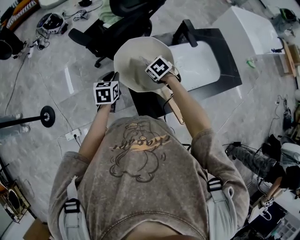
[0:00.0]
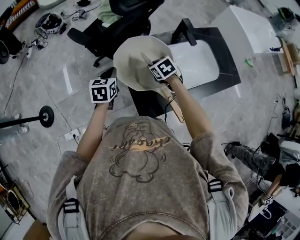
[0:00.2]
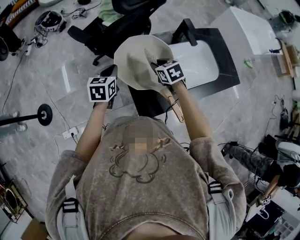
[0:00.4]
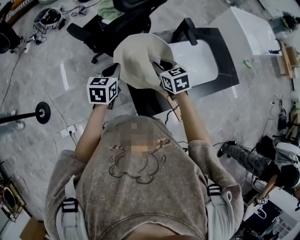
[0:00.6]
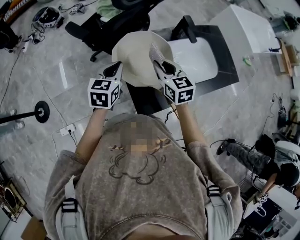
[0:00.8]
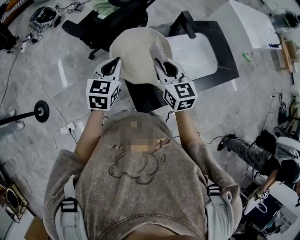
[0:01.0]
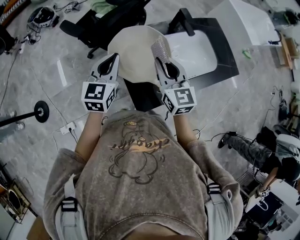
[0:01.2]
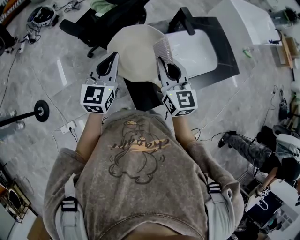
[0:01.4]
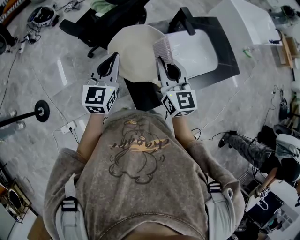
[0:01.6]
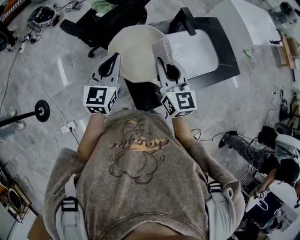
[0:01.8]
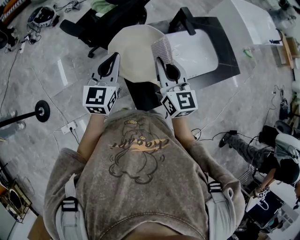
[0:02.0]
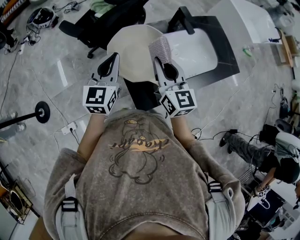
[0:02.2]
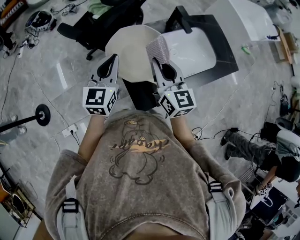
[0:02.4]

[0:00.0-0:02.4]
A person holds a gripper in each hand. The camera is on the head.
0:00.0 to 0:01.2: Both grippers move upward, some 20 cm. The left gripper rotates approximately 30 degrees. Meanwhile the right gripper tilts its fingers about 60 degrees upward.
0:01.2 to 0:02.4: The grippers make only small movements.

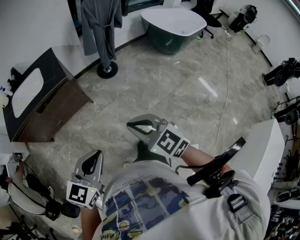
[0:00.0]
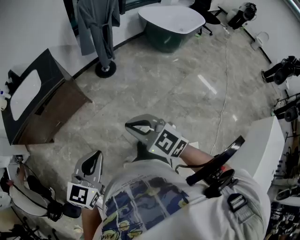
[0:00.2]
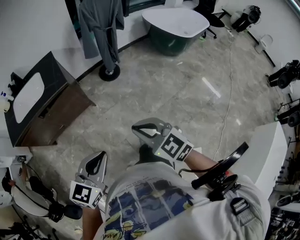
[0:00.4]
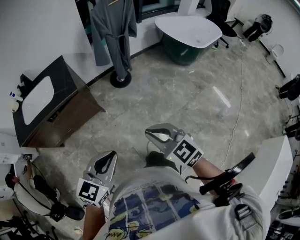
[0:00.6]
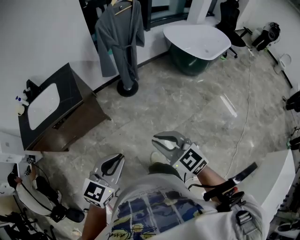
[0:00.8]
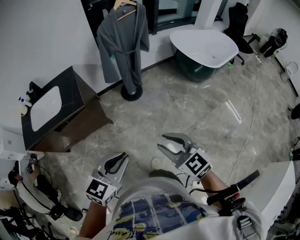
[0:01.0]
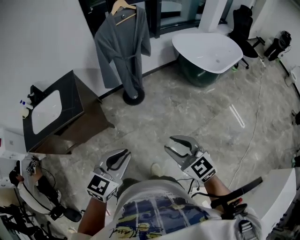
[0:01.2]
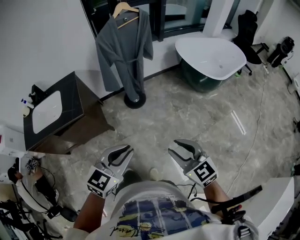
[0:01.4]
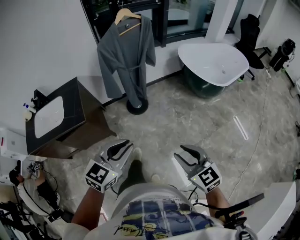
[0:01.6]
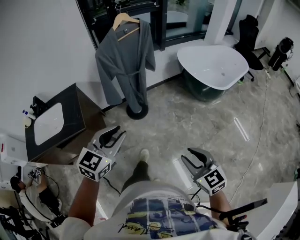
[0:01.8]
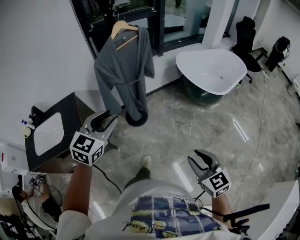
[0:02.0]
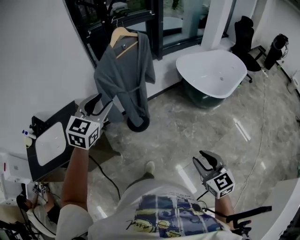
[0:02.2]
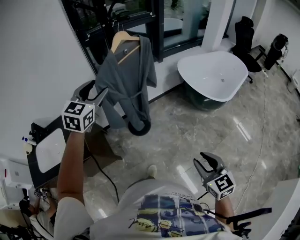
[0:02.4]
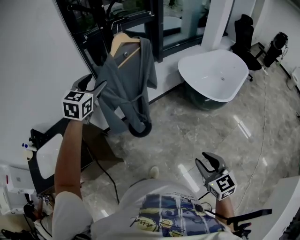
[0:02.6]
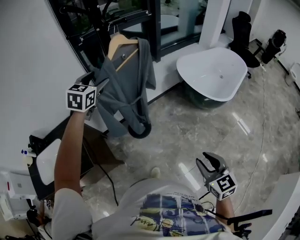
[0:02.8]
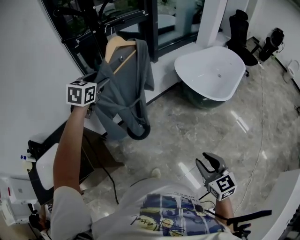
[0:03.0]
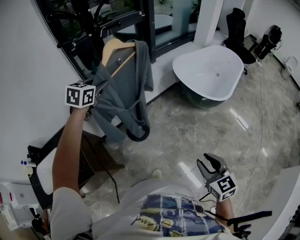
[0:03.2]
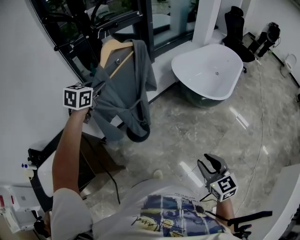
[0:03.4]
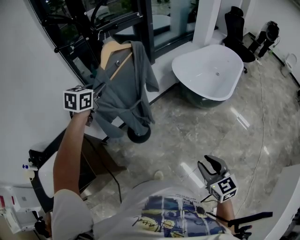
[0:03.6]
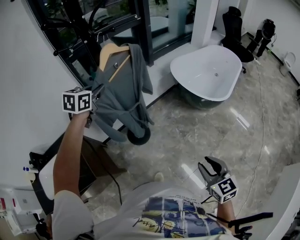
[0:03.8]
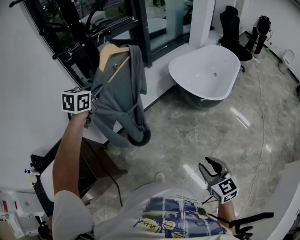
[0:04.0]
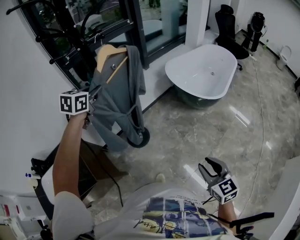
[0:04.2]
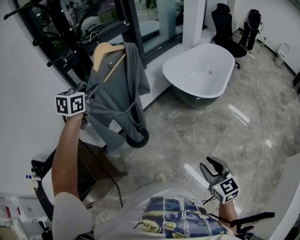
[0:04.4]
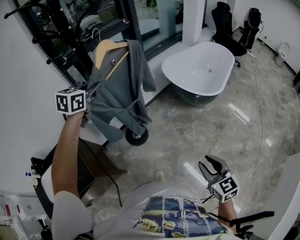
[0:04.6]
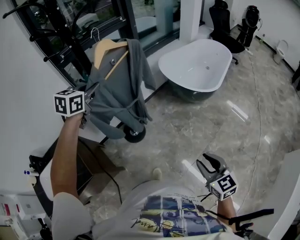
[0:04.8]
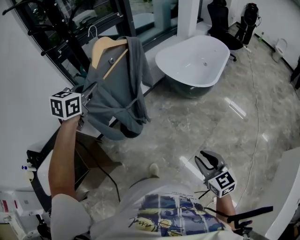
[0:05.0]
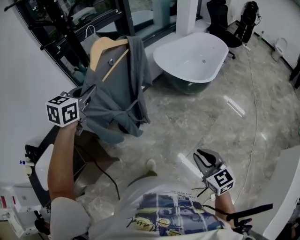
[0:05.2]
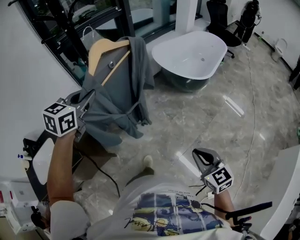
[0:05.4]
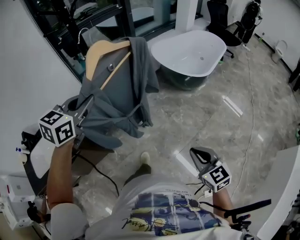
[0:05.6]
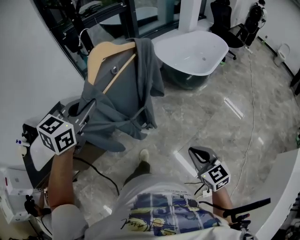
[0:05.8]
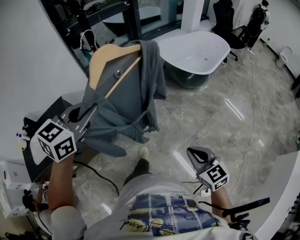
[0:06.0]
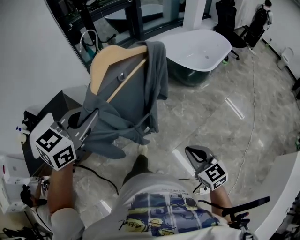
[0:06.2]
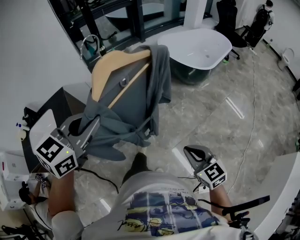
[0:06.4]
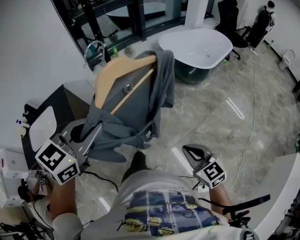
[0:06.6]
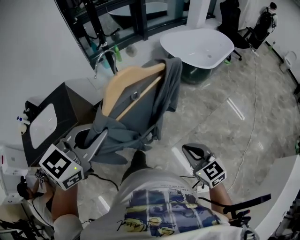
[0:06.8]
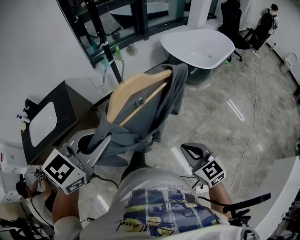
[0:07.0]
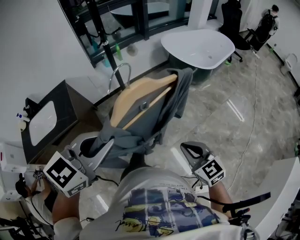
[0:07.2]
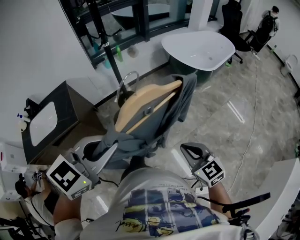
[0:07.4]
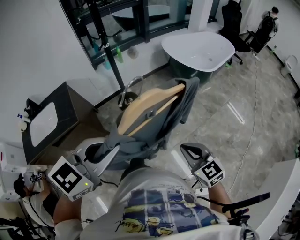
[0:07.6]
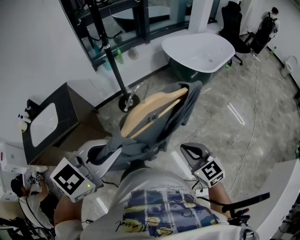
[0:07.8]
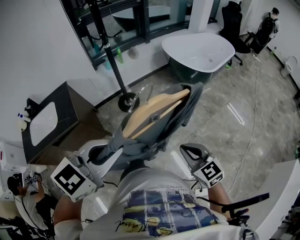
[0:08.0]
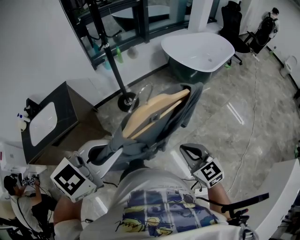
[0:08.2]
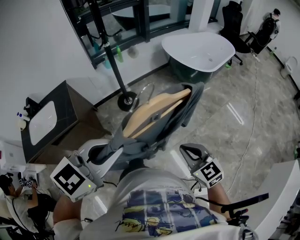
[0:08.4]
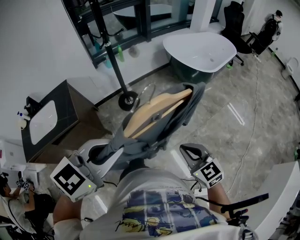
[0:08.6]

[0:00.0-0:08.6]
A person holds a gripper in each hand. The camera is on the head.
0:00.0 to 0:01.4: The left gripper shifts some 35 cm forward and to the right. The right gripper heads to the right and forward, covering approximately 30 cm, and opens.
0:01.4 to 0:02.8: The right gripper travels forward by some 20 cm, and rotates approximately 30 degrees. The left gripper shifts some 60 cm forward, and opens its fingers.
0:02.8 to 0:04.4: The left gripper closes its fingers.
0:04.4 to 0:05.8: The right gripper shifts approximately 15 cm backward and to the right, and closes its fingers. The left gripper travels backward and to the right by roughly 35 cm.
0:05.8 to 0:07.2: The right gripper goes roughly 5 cm backward, while the left gripper is displaced backward by about 20 cm.
0:07.2 to 0:08.6: The grippers make only small movements.

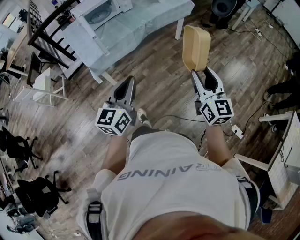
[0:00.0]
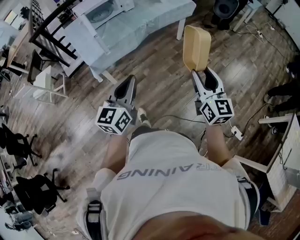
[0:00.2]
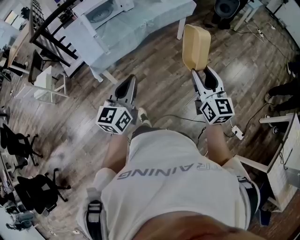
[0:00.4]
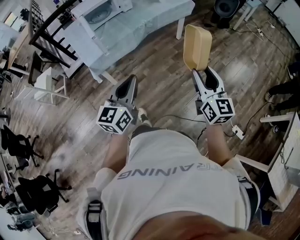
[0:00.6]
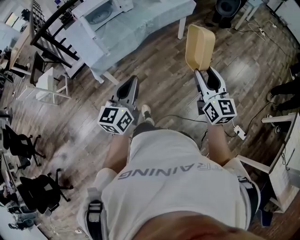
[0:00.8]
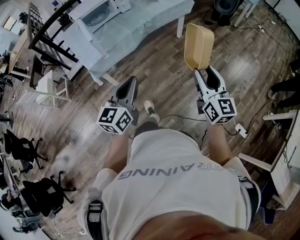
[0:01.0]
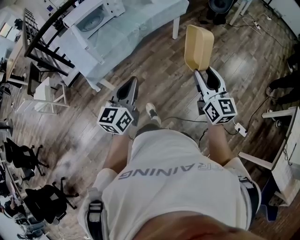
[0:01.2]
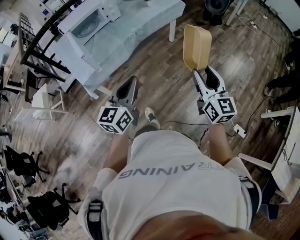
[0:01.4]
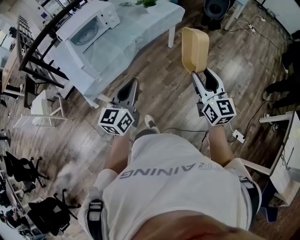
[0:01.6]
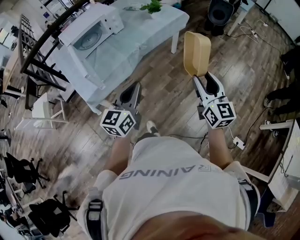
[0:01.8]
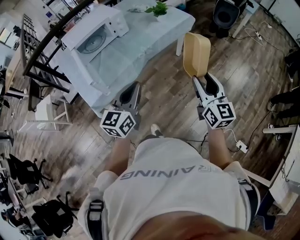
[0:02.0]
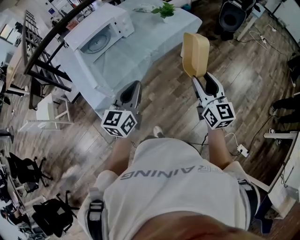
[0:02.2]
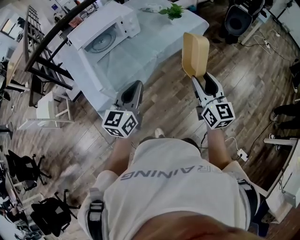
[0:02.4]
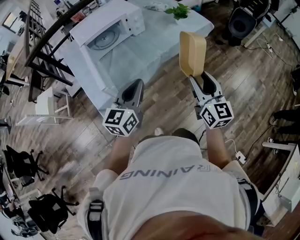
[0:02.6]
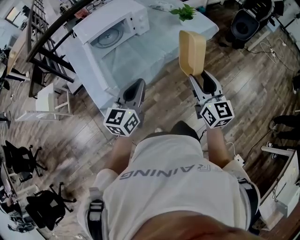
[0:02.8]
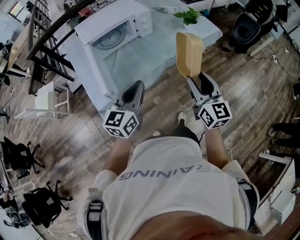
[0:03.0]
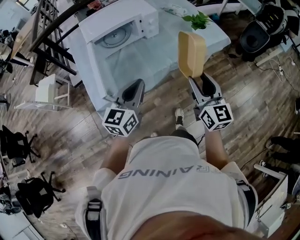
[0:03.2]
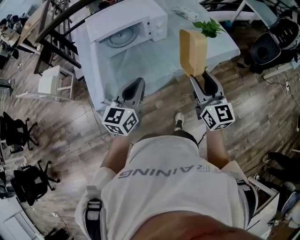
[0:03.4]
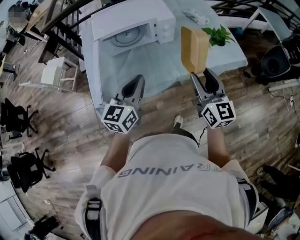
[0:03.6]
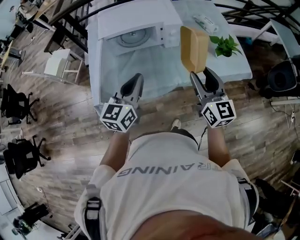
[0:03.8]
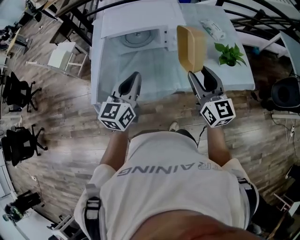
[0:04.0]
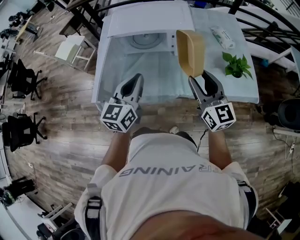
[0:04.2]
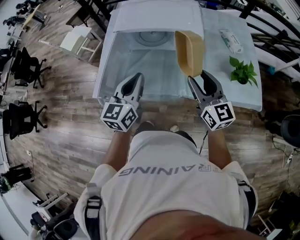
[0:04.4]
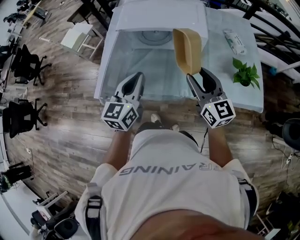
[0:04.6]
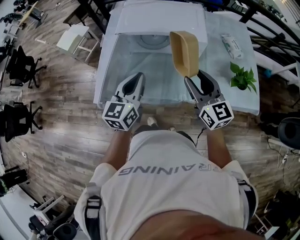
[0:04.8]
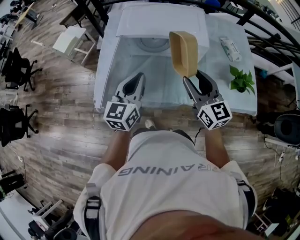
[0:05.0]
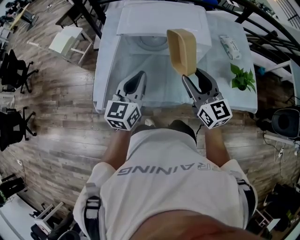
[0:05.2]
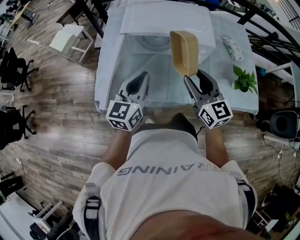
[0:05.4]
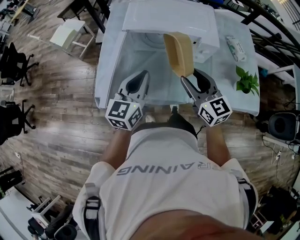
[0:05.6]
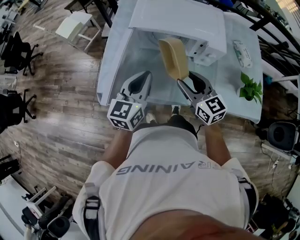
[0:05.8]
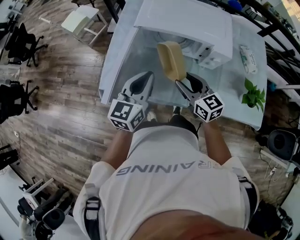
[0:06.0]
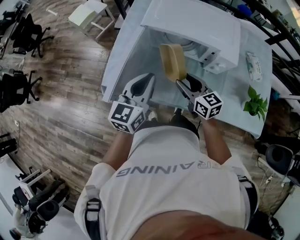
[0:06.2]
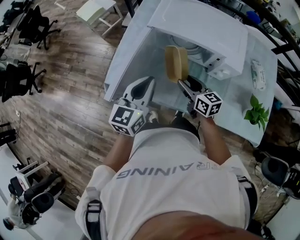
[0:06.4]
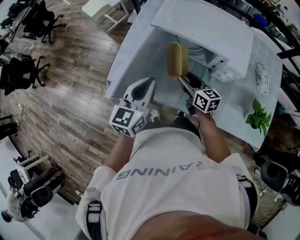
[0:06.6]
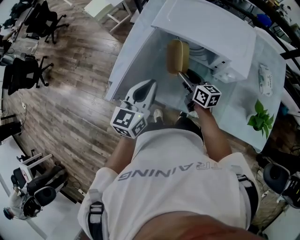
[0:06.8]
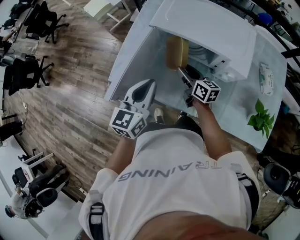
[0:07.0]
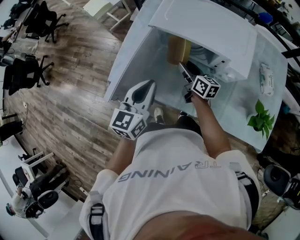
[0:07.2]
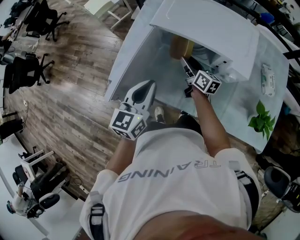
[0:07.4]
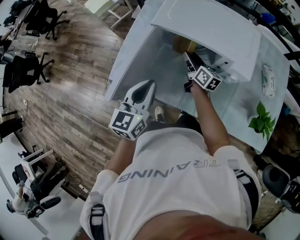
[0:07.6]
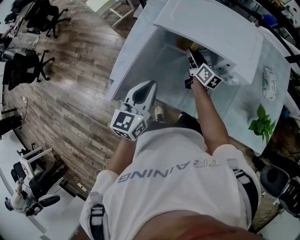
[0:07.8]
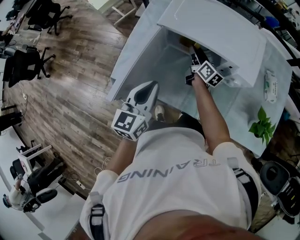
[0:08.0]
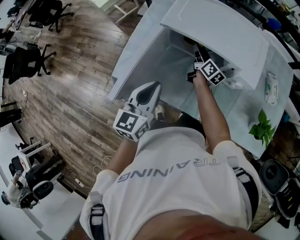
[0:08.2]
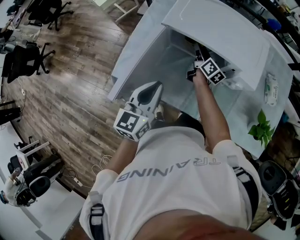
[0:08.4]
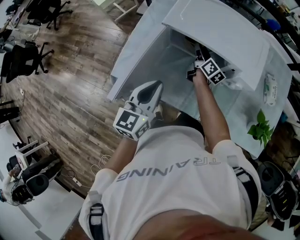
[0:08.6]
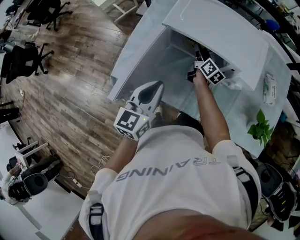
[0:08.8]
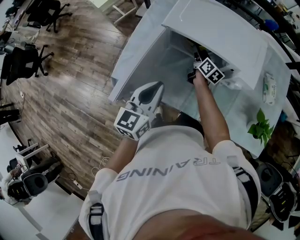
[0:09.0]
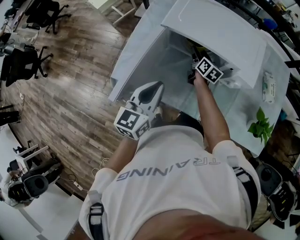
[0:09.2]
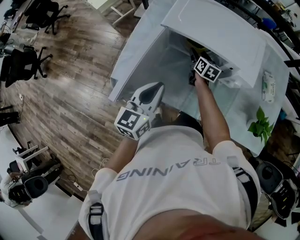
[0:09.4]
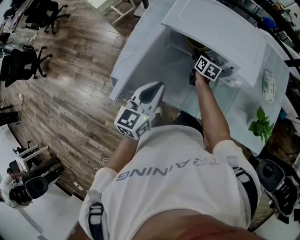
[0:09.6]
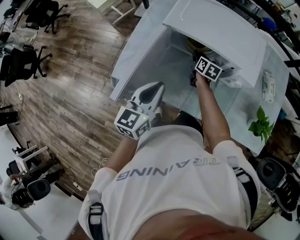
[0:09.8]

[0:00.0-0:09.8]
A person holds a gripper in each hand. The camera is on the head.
0:00.0 to 0:01.4: The two grippers go about 10 cm forward.
0:01.4 to 0:02.8: The grippers both shift forward and to the left by some 30 cm.
0:02.8 to 0:04.2: The right gripper changes place by approximately 35 cm, and rotates roughly 40 degrees, while the left gripper changes place by approximately 25 cm, and rotates some 40 degrees.
0:04.2 to 0:05.6: The right gripper heads to the left and forward, covering roughly 15 cm; the left gripper travels forward and to the left by about 10 cm.
0:05.6 to 0:07.0: The right gripper goes approximately 20 cm downward and forward, and turns by approximately 40 degrees.
0:07.0 to 0:08.4: The right gripper moves forward, about 15 cm, and changes its angle by some 30 degrees.
0:08.4 to 0:09.8: The right gripper shifts roughly 5 cm downward, and turns by roughly 30 degrees.

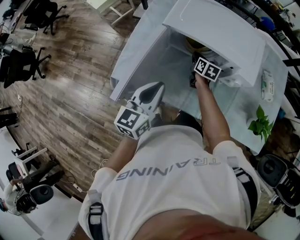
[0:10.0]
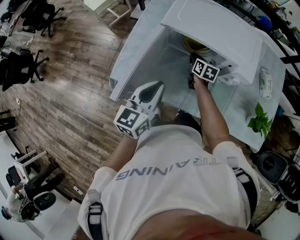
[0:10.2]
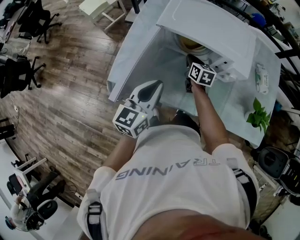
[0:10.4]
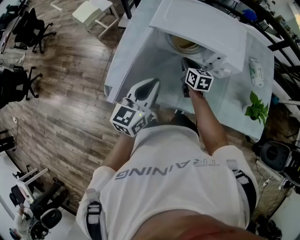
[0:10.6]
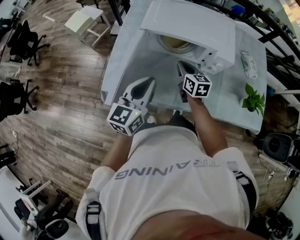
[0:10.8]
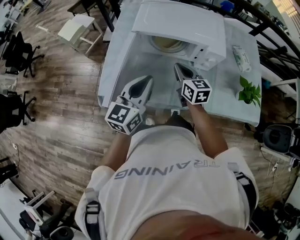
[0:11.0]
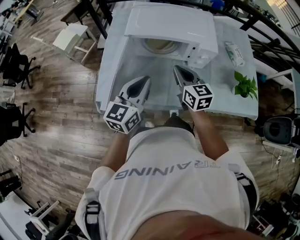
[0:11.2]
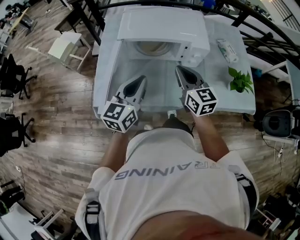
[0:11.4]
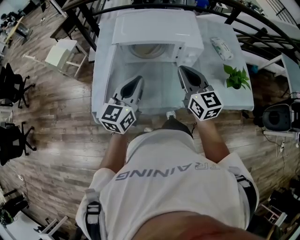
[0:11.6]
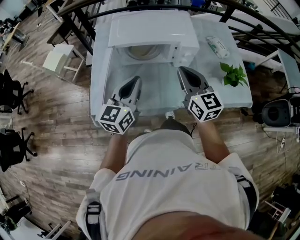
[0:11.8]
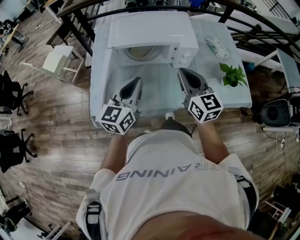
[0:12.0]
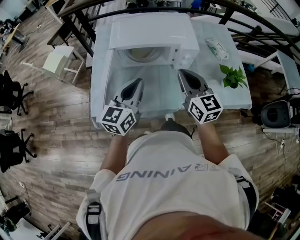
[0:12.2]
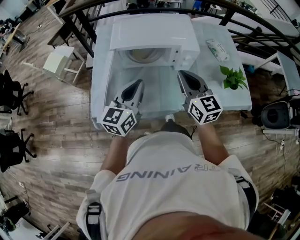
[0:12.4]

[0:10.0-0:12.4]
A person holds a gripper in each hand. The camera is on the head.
0:10.0 to 0:11.2: The left gripper shifts roughly 5 cm upward. Meanwhile the right gripper moves upward and backward, approximately 25 cm, and swivels about 30 degrees.
0:11.2 to 0:12.4: The right gripper shifts approximately 10 cm upward and to the right.
